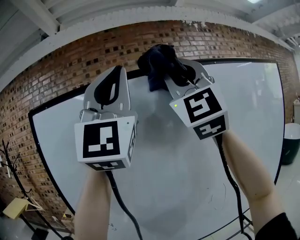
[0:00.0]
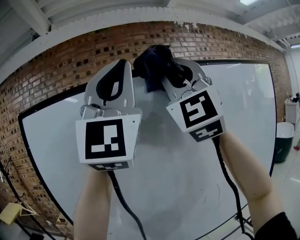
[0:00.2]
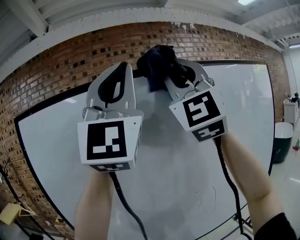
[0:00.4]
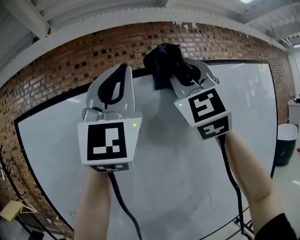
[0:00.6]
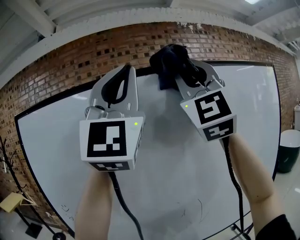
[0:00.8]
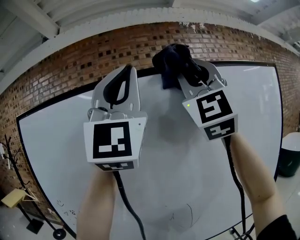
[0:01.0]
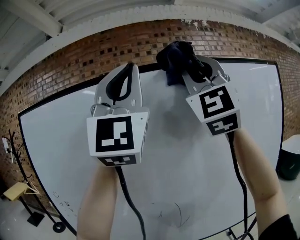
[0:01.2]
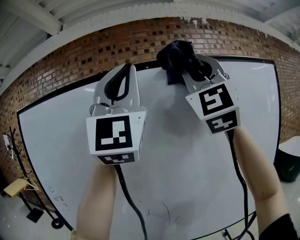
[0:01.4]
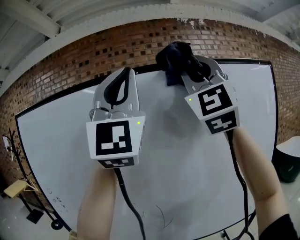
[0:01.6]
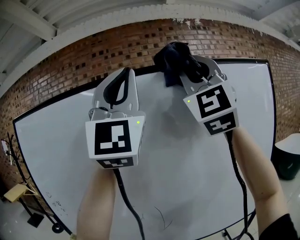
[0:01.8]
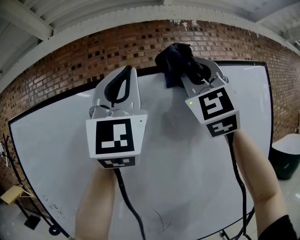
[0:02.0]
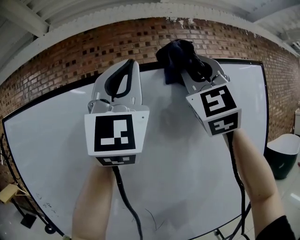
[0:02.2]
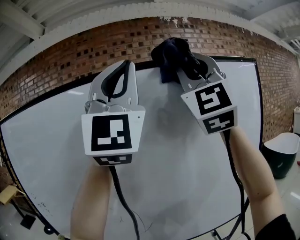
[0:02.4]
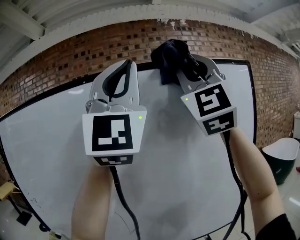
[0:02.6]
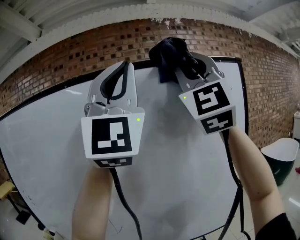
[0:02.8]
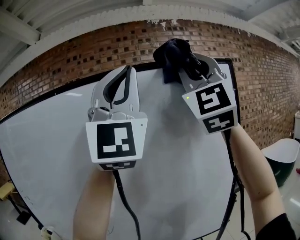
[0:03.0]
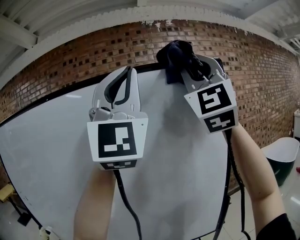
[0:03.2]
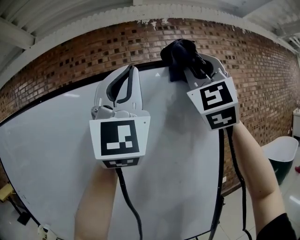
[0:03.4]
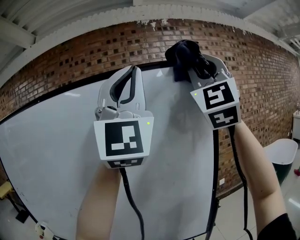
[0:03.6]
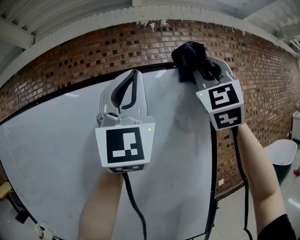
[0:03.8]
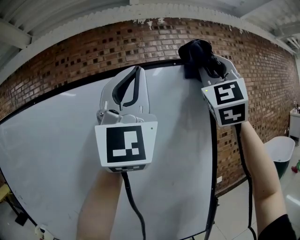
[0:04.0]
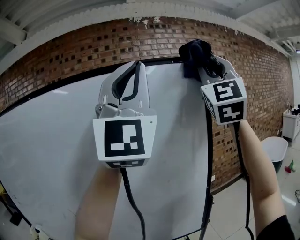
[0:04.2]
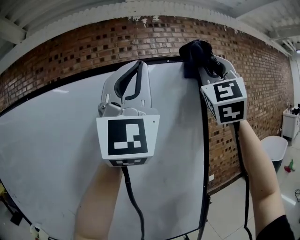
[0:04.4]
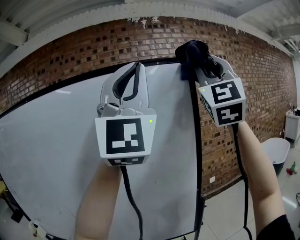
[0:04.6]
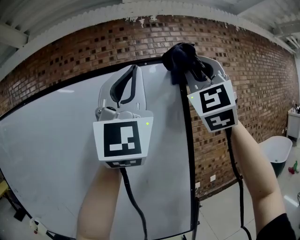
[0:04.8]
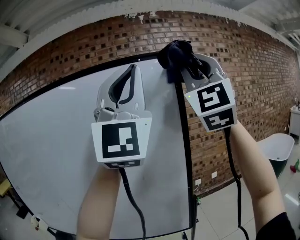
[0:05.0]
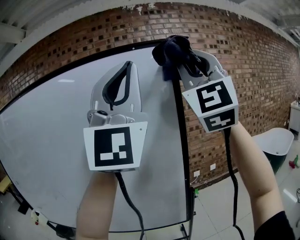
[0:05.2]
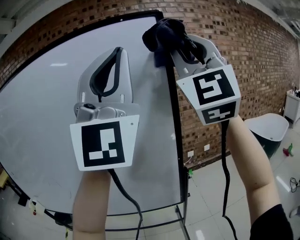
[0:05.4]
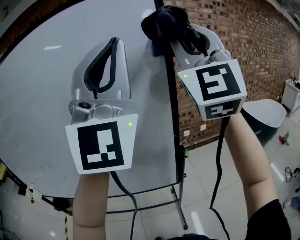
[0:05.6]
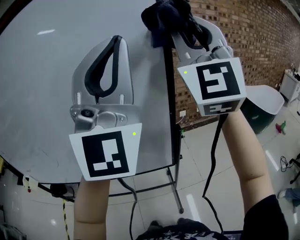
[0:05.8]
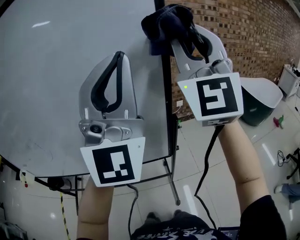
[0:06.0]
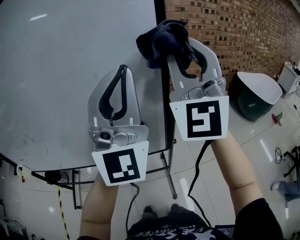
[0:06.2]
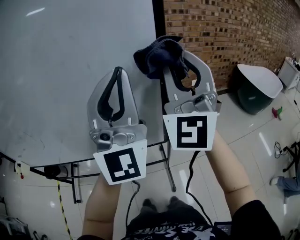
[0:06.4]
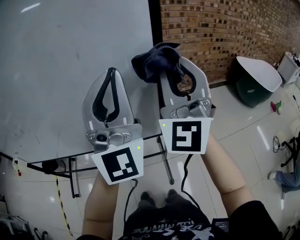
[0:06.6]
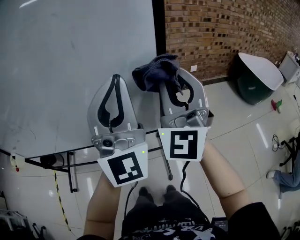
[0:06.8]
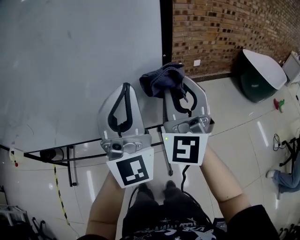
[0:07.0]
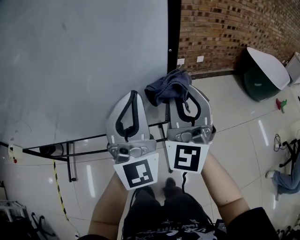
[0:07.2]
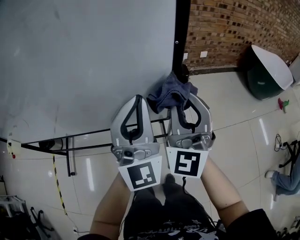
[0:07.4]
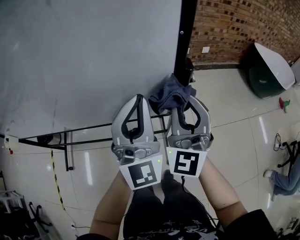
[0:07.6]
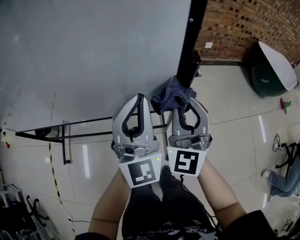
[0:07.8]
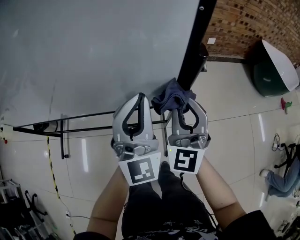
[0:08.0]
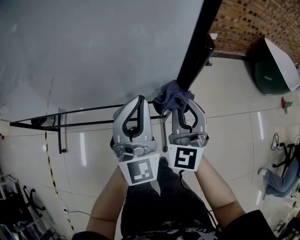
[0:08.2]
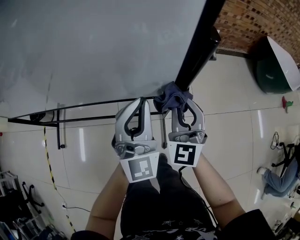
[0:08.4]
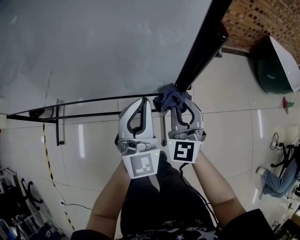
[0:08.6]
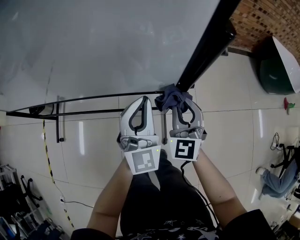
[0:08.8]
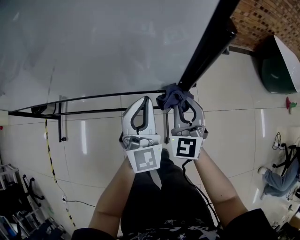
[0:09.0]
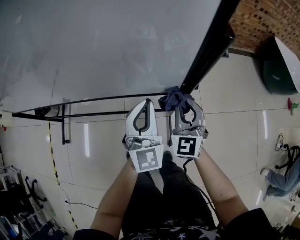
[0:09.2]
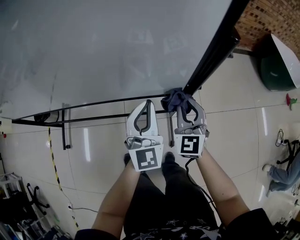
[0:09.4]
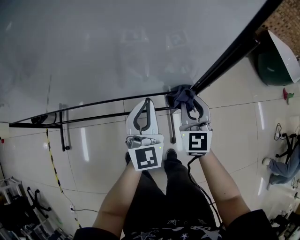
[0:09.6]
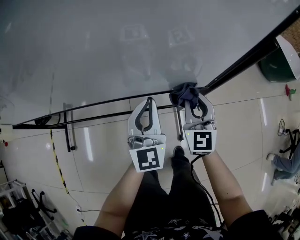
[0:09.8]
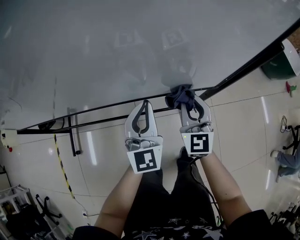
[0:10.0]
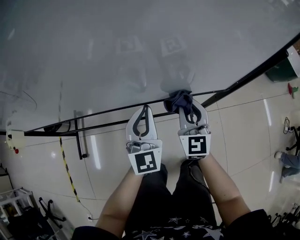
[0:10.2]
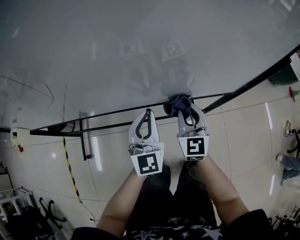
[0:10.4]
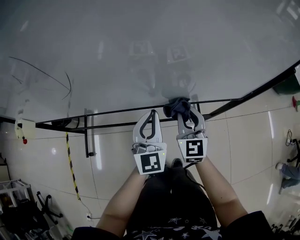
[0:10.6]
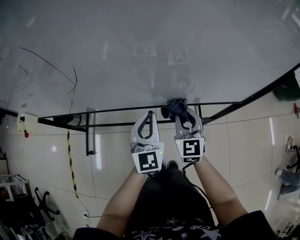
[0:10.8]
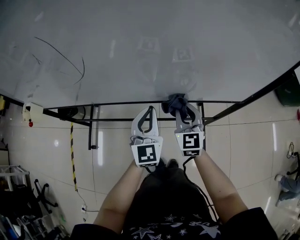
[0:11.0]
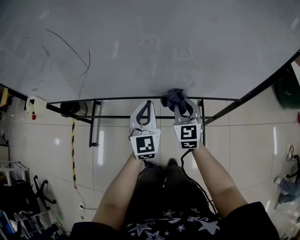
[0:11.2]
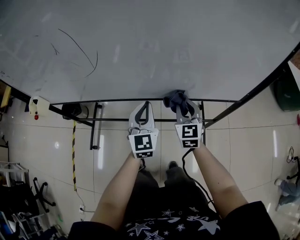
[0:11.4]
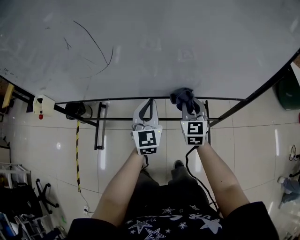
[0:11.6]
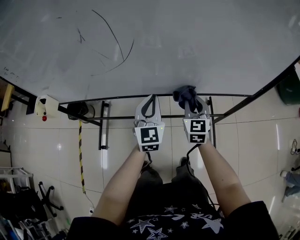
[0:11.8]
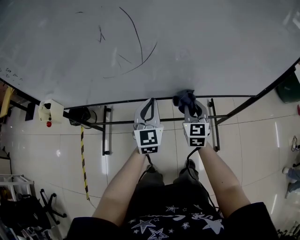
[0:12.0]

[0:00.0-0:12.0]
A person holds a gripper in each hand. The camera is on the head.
0:00.0 to 0:01.6: The grippers both shift to the right by roughly 25 cm.
0:01.6 to 0:03.0: The grippers both shift to the right by about 20 cm.
0:03.0 to 0:04.4: The right gripper heads to the right and forward, covering about 20 cm, while the left gripper shifts approximately 10 cm to the right.
0:04.4 to 0:06.0: Both grippers move downward, about 25 cm.
0:06.0 to 0:07.6: Both grippers move downward, roughly 35 cm. The left gripper turns by some 30 degrees, while the right gripper rotates some 20 degrees.
0:07.6 to 0:09.0: Both grippers travel together downward, roughly 20 cm. The right gripper swivels some 20 degrees. Meanwhile the left gripper changes its angle by some 20 degrees.
0:09.0 to 0:10.4: The two grippers go about 20 cm to the left.
0:10.4 to 0:12.0: The two grippers go approximately 15 cm to the left.

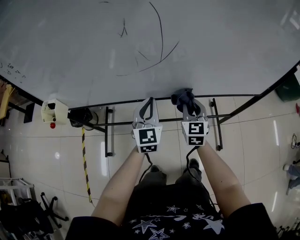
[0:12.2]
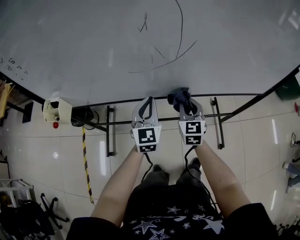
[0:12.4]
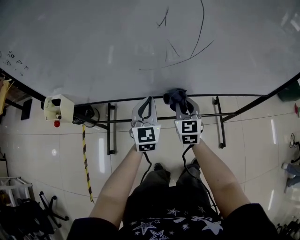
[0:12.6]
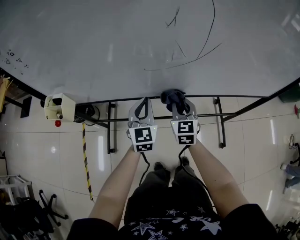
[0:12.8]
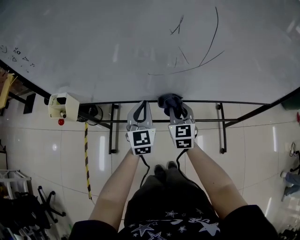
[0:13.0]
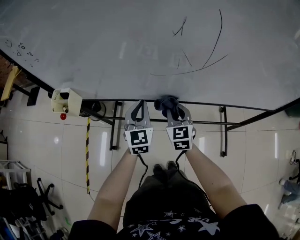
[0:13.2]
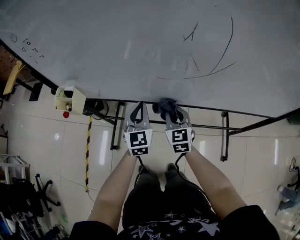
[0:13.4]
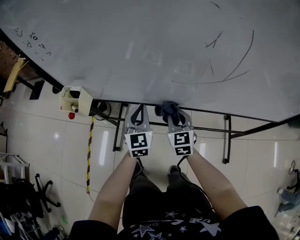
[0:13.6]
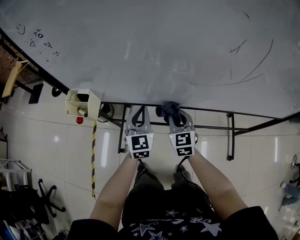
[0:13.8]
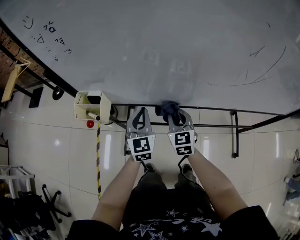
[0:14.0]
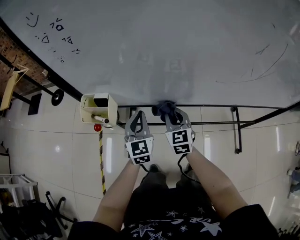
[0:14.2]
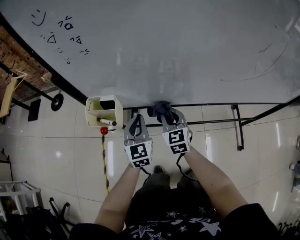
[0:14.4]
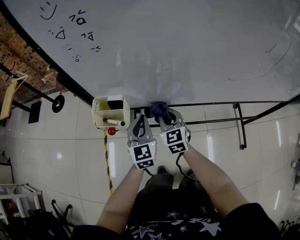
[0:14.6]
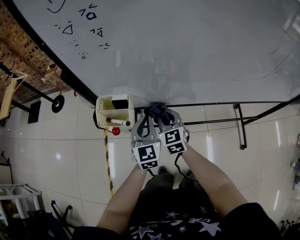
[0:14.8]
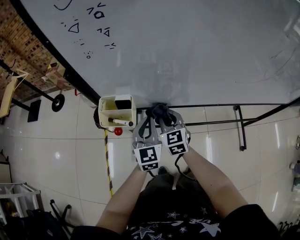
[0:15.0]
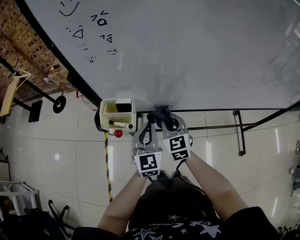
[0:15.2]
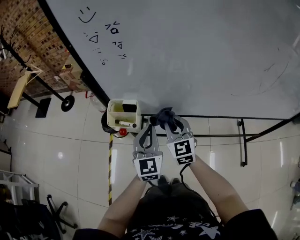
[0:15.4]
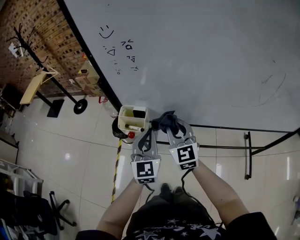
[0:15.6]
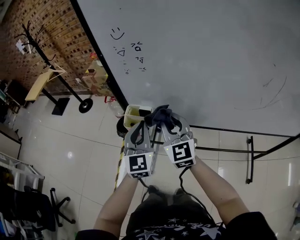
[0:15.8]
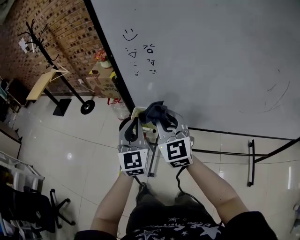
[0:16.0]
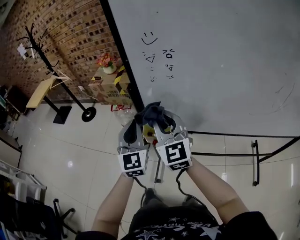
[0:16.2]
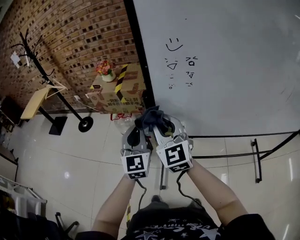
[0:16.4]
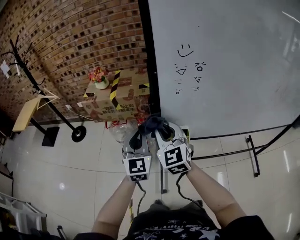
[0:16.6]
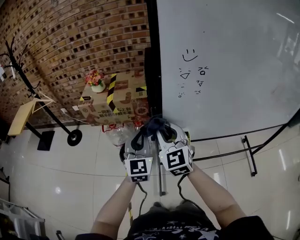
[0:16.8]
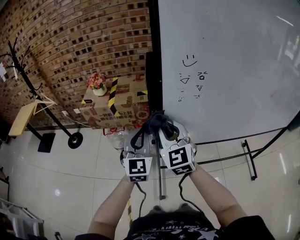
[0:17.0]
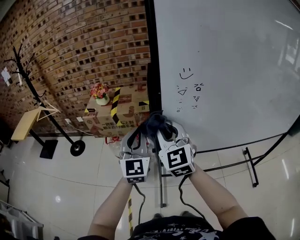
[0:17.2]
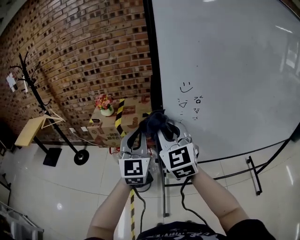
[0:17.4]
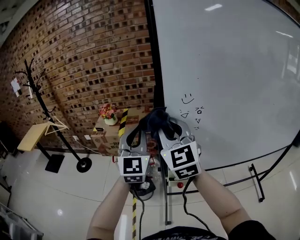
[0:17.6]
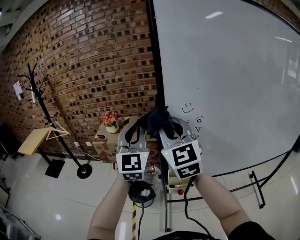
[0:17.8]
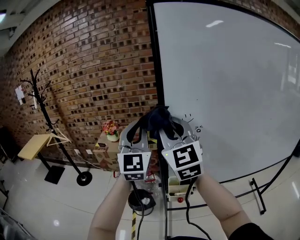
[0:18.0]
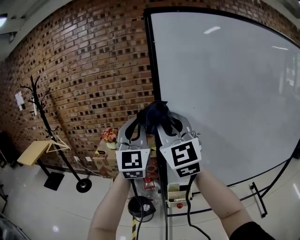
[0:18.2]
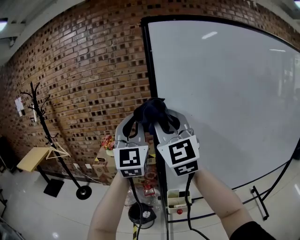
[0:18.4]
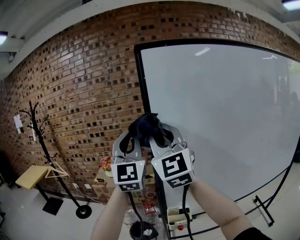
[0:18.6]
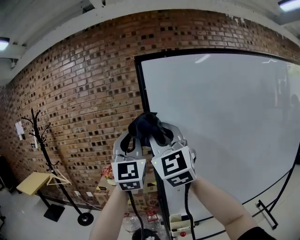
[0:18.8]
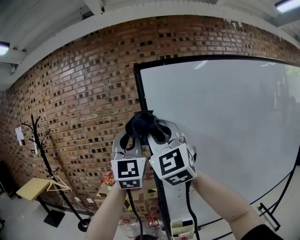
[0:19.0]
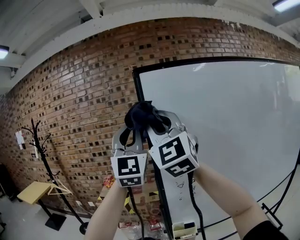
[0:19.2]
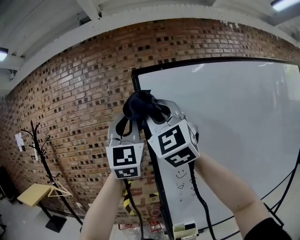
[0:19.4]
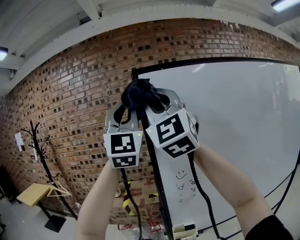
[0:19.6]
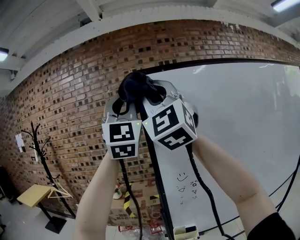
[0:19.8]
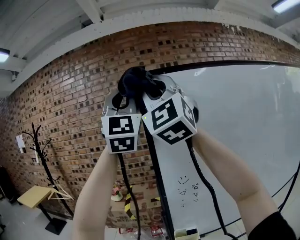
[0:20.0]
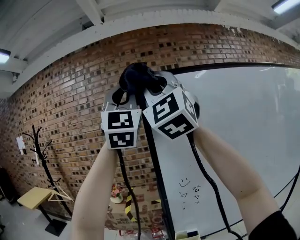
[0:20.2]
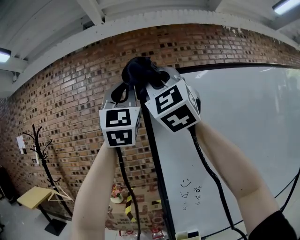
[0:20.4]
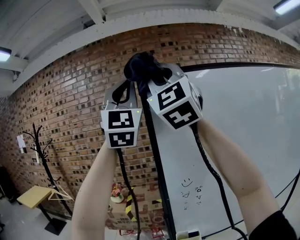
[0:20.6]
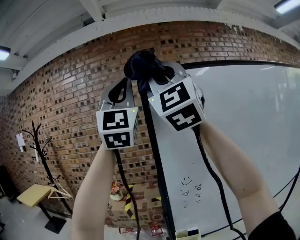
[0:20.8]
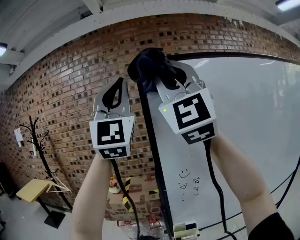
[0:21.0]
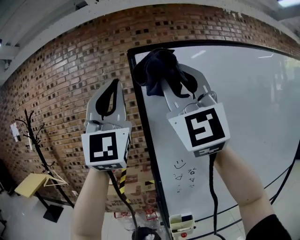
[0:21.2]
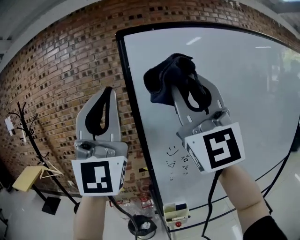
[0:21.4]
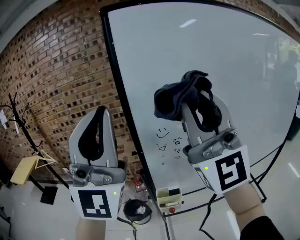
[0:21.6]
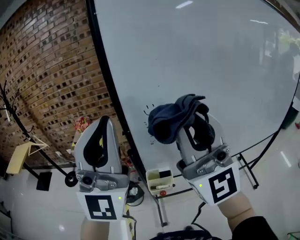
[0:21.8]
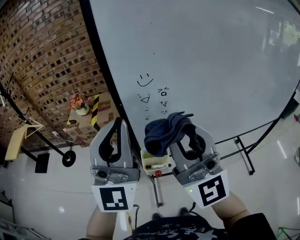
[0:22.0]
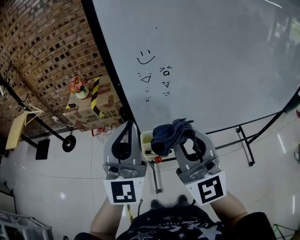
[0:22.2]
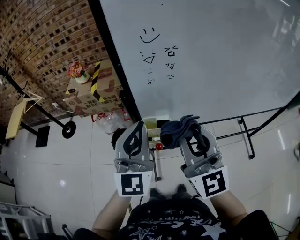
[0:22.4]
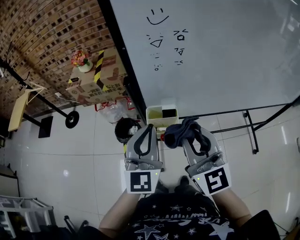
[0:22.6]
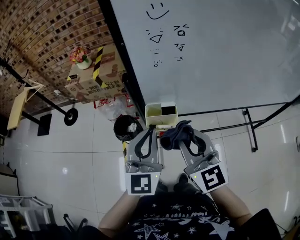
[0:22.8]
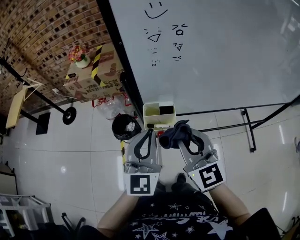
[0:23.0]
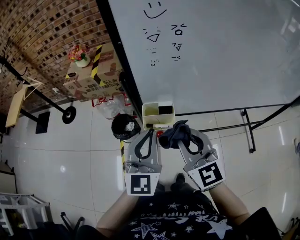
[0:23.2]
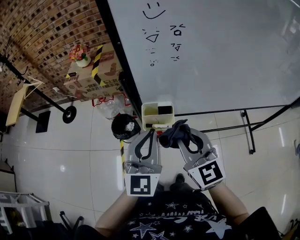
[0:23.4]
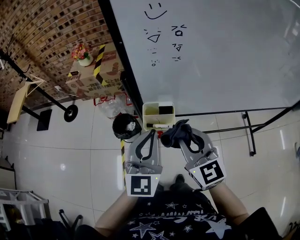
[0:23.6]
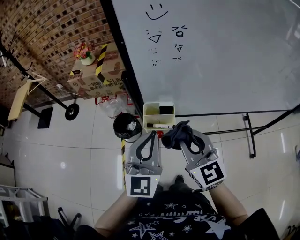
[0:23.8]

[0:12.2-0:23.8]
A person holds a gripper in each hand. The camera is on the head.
0:12.2 to 0:13.6: Both grippers move to the left, some 20 cm.
0:13.6 to 0:15.0: Both grippers move to the left, some 20 cm.
0:15.0 to 0:16.6: The left gripper shifts approximately 25 cm to the left and upward. Meanwhile the right gripper goes about 30 cm upward and to the left, and rotates about 20 degrees.
0:16.6 to 0:18.0: The grippers both shift upward by approximately 25 cm. The right gripper turns by roughly 20 degrees. Meanwhile the left gripper changes its angle by about 30 degrees.
0:18.0 to 0:19.4: Both grippers travel together upward, some 25 cm. The left gripper swivels about 20 degrees. Meanwhile the right gripper swivels approximately 30 degrees.
0:19.4 to 0:21.0: The grippers both shift upward by roughly 10 cm.
0:21.0 to 0:22.4: The grippers both shift downward by some 50 cm. The left gripper points its fingers roughly 40 degrees further downward. Meanwhile the right gripper turns by roughly 50 degrees.
0:22.4 to 0:23.8: The two grippers go roughly 10 cm downward. The right gripper swivels approximately 20 degrees.
